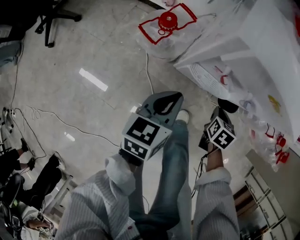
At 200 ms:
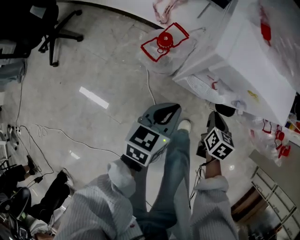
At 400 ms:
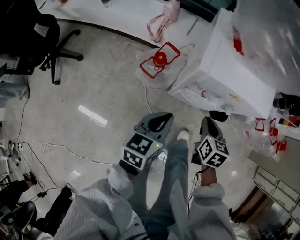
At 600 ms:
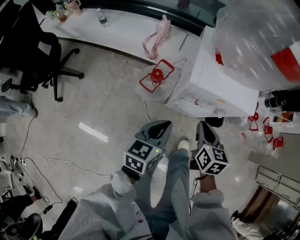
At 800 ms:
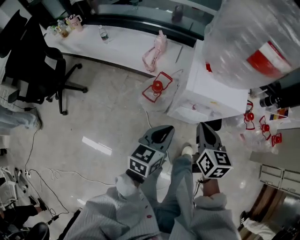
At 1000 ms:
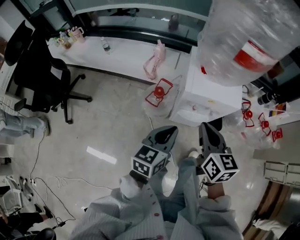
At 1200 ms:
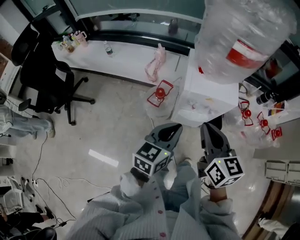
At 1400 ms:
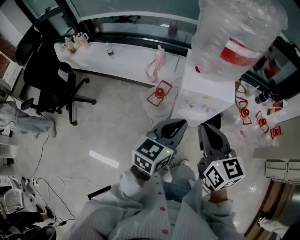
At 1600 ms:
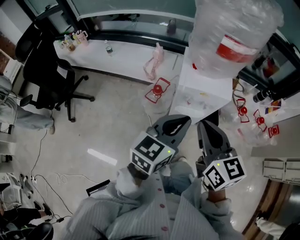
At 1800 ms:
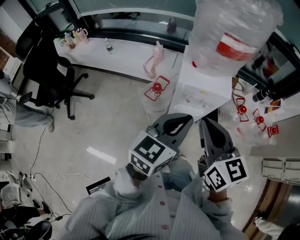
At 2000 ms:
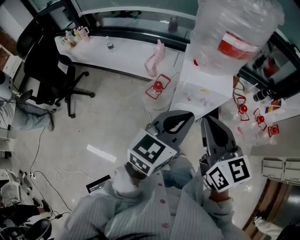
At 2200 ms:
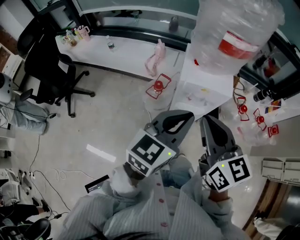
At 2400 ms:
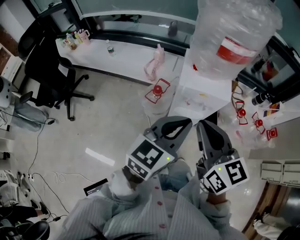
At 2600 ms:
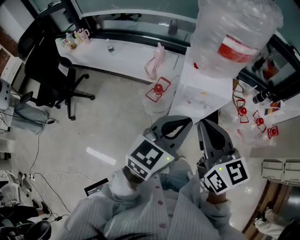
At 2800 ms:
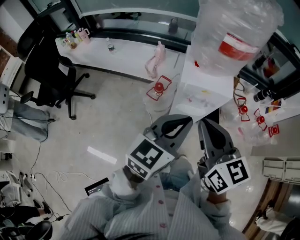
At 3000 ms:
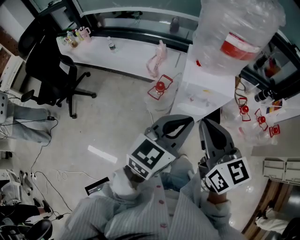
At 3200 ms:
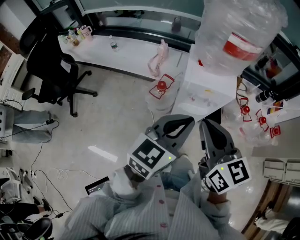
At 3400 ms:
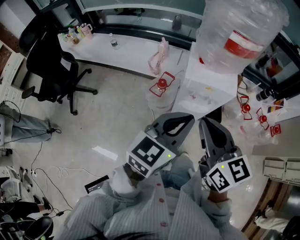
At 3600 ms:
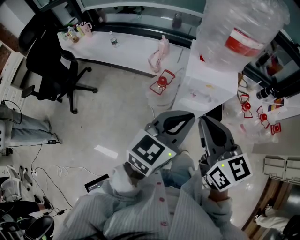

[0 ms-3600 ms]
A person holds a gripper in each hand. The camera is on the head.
0 ms to 1800 ms: The grippers both shift upward by some 50 cm. The right gripper angles its fingers upward, by some 50 degrees. Meanwhile the left gripper turns by about 40 degrees.
1800 ms to 3600 ms: The grippers stay close to where they were, moving slightly.

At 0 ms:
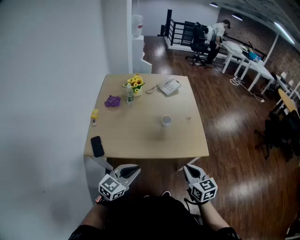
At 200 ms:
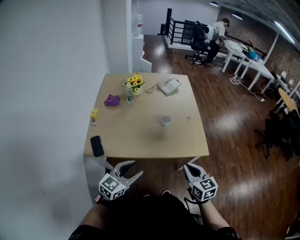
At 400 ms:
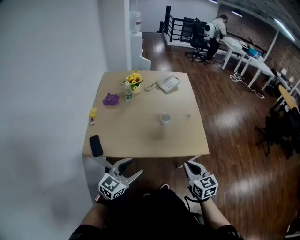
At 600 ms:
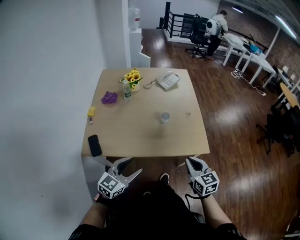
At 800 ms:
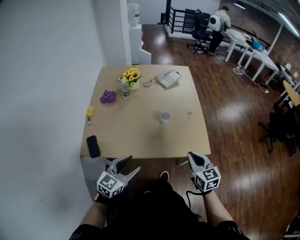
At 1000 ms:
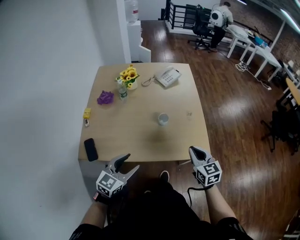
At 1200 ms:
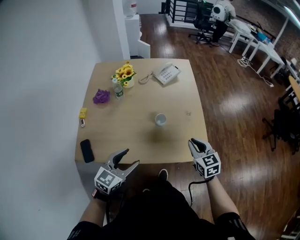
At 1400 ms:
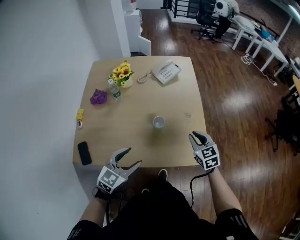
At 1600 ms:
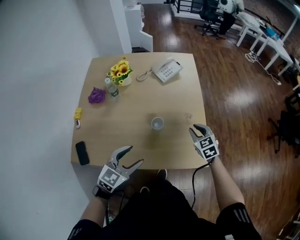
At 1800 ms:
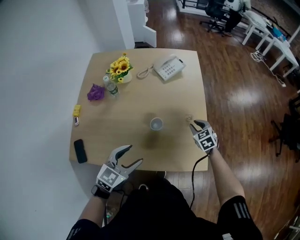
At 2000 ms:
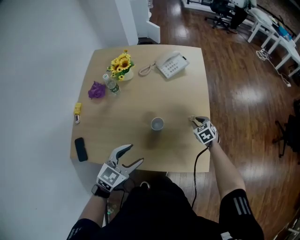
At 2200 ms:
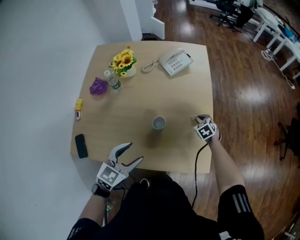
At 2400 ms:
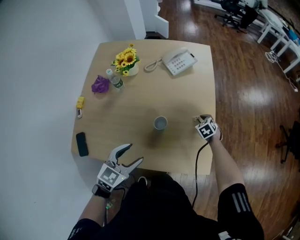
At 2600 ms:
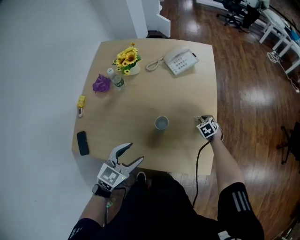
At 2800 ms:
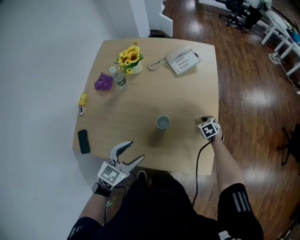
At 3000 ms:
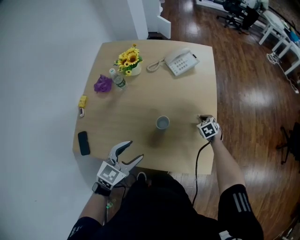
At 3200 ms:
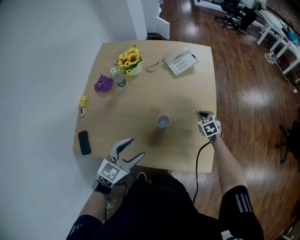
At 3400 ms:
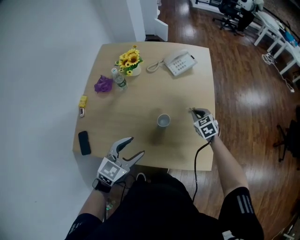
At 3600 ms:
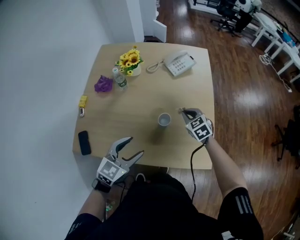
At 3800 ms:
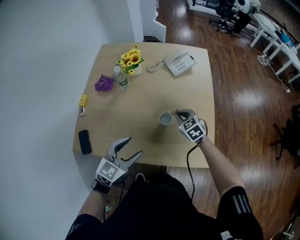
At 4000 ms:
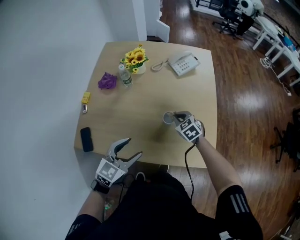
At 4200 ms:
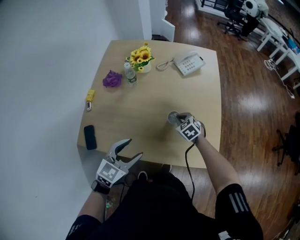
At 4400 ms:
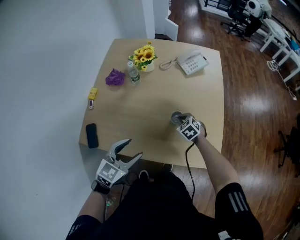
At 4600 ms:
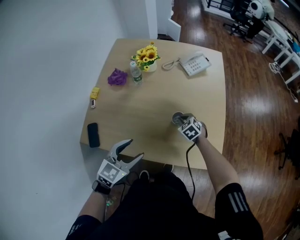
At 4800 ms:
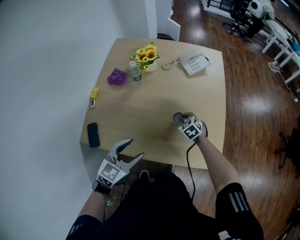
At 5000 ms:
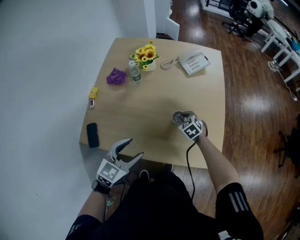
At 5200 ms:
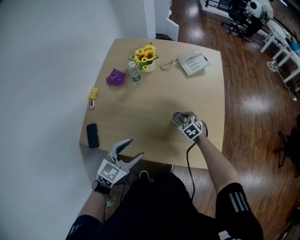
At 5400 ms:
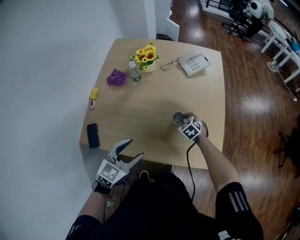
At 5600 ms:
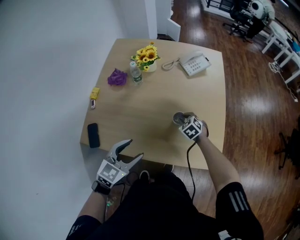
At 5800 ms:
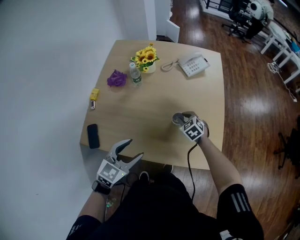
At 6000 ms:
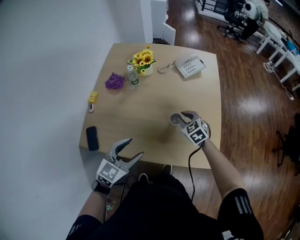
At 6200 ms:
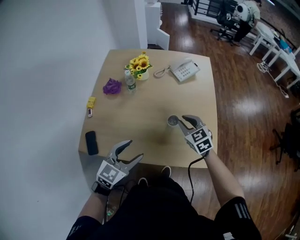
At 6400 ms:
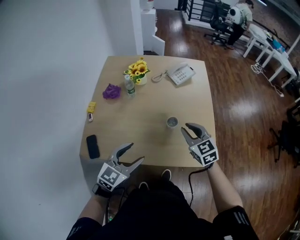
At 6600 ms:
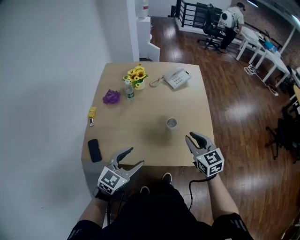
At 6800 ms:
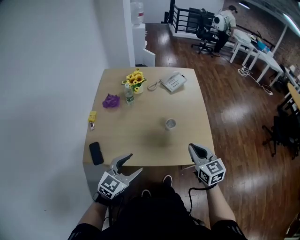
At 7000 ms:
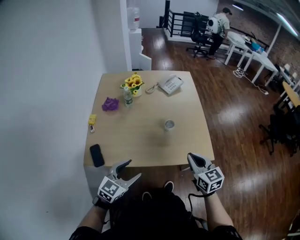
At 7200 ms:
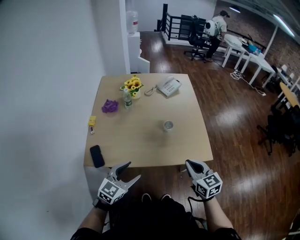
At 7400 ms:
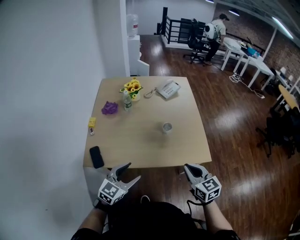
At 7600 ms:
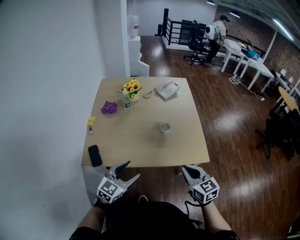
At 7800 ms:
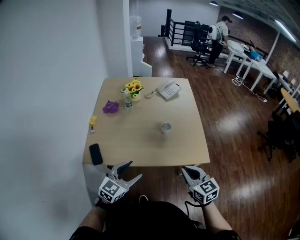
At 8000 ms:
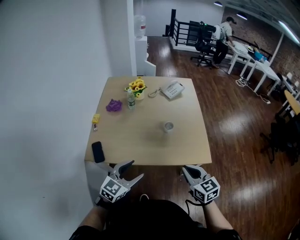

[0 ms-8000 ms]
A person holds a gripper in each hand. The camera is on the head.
0 ms to 1600 ms: The right gripper moves forward, about 40 cm, rotates some 30 degrees, and opens up, while the left gripper goes some 25 cm forward, and opens.
1600 ms to 3200 ms: The right gripper shifts roughly 15 cm forward and downward, and closes its fingers.
3200 ms to 4800 ms: The left gripper heads to the left, covering about 10 cm. The right gripper heads to the left, covering about 20 cm.
4800 ms to 6400 ms: The right gripper moves upward and backward, approximately 25 cm, and rotates some 30 degrees. The left gripper changes place by some 5 cm.
6400 ms to 8000 ms: The right gripper is displaced backward by about 25 cm, and closes its fingers. The left gripper shifts approximately 15 cm backward.

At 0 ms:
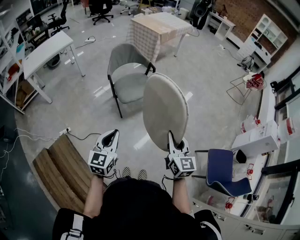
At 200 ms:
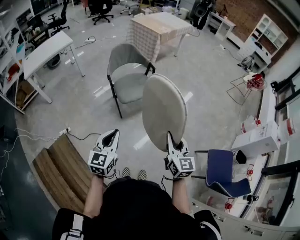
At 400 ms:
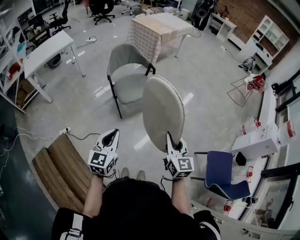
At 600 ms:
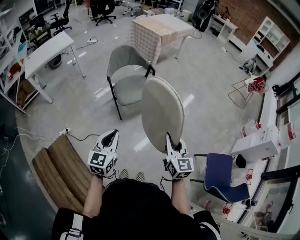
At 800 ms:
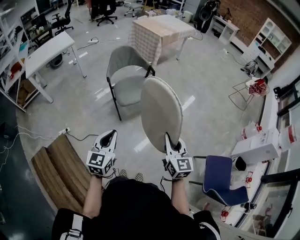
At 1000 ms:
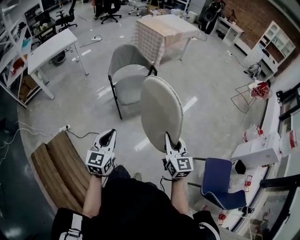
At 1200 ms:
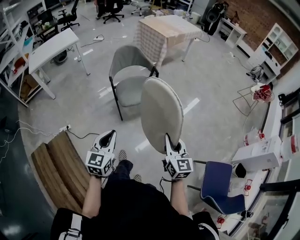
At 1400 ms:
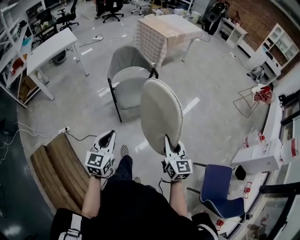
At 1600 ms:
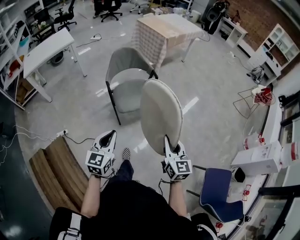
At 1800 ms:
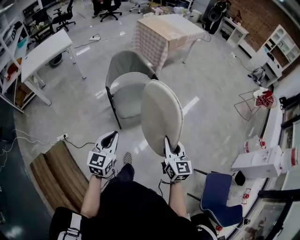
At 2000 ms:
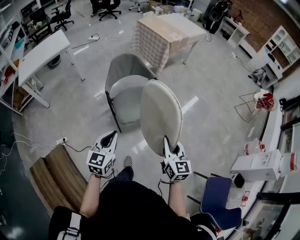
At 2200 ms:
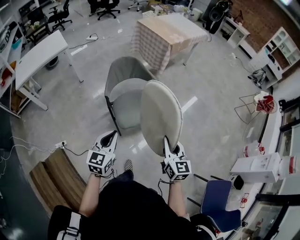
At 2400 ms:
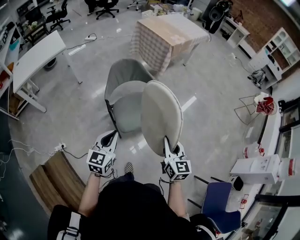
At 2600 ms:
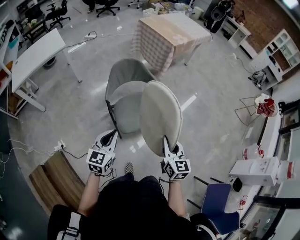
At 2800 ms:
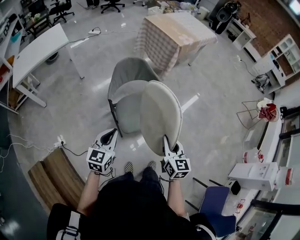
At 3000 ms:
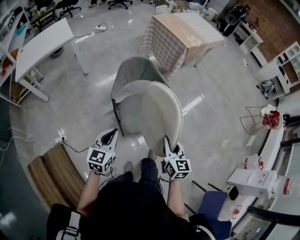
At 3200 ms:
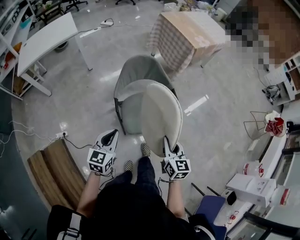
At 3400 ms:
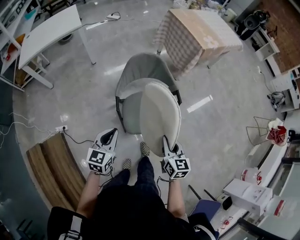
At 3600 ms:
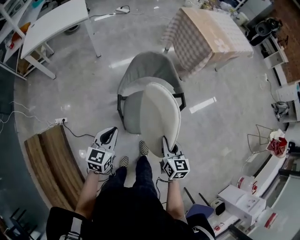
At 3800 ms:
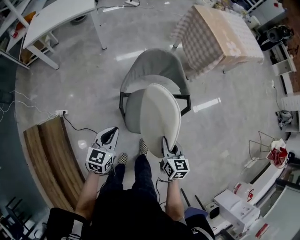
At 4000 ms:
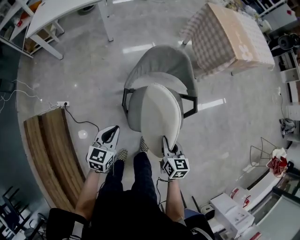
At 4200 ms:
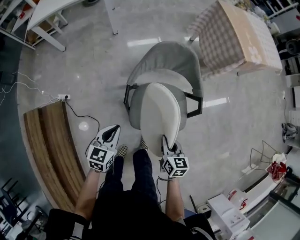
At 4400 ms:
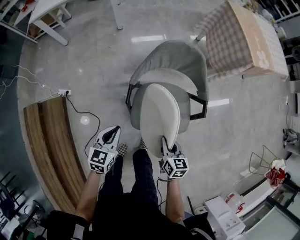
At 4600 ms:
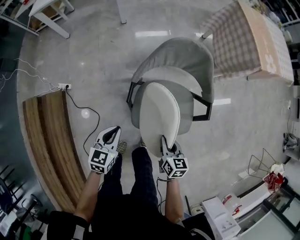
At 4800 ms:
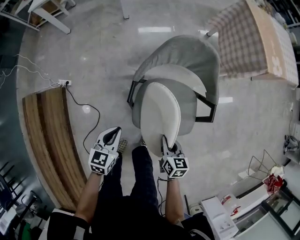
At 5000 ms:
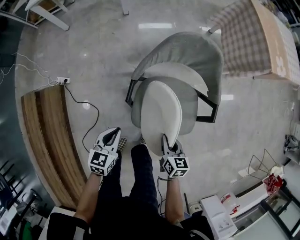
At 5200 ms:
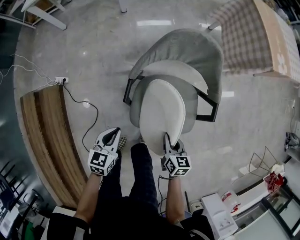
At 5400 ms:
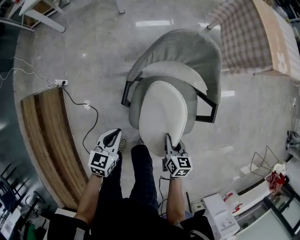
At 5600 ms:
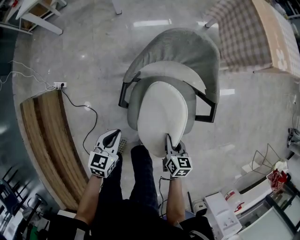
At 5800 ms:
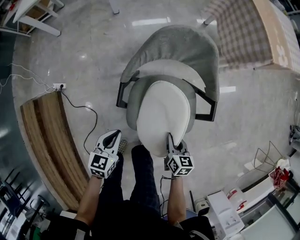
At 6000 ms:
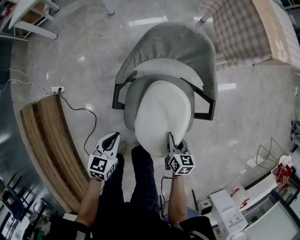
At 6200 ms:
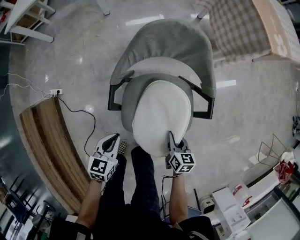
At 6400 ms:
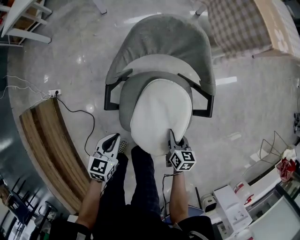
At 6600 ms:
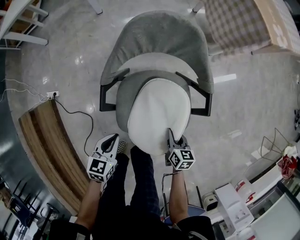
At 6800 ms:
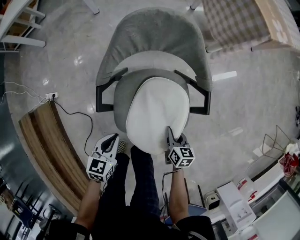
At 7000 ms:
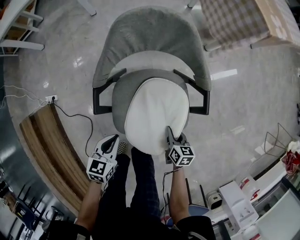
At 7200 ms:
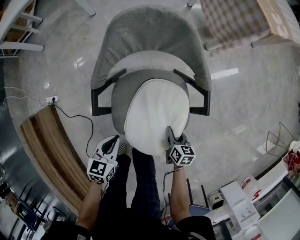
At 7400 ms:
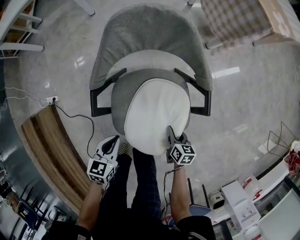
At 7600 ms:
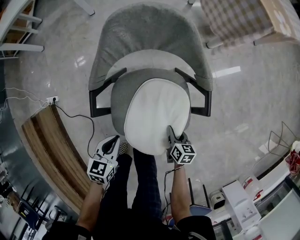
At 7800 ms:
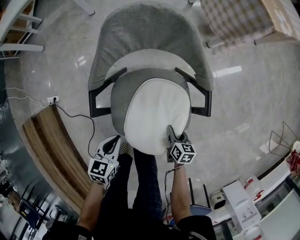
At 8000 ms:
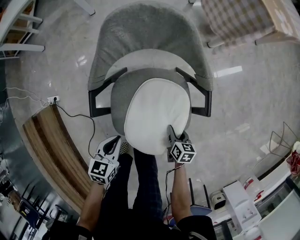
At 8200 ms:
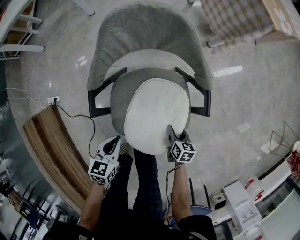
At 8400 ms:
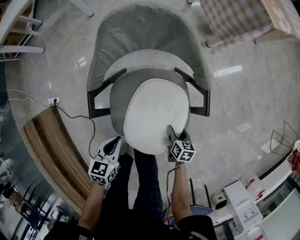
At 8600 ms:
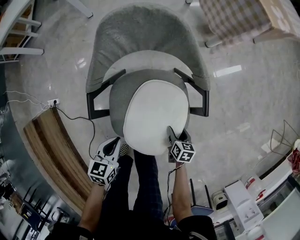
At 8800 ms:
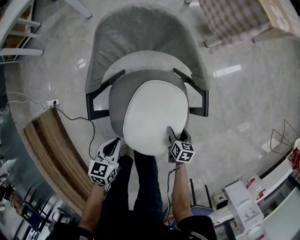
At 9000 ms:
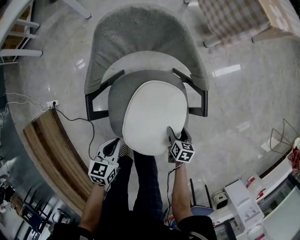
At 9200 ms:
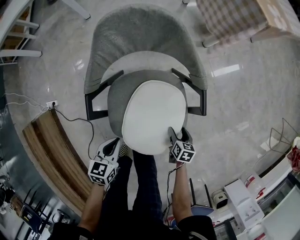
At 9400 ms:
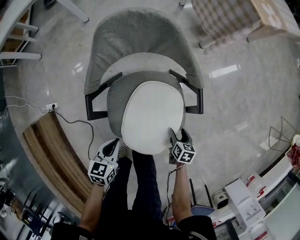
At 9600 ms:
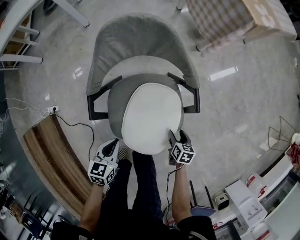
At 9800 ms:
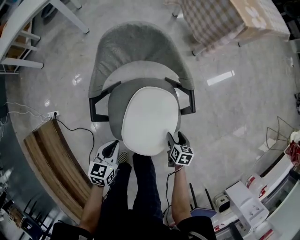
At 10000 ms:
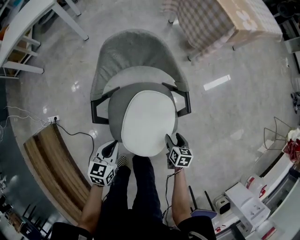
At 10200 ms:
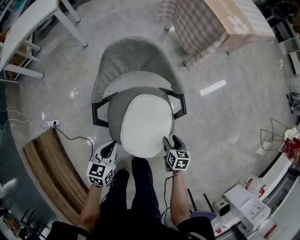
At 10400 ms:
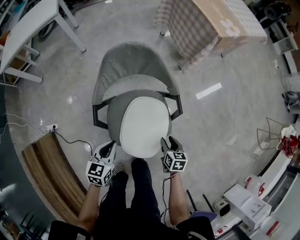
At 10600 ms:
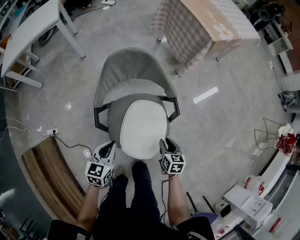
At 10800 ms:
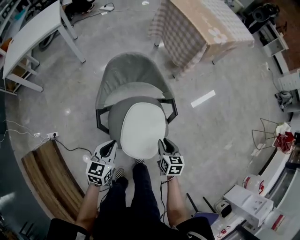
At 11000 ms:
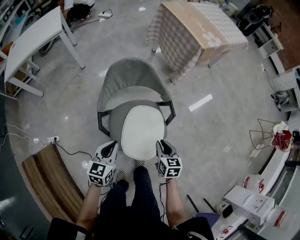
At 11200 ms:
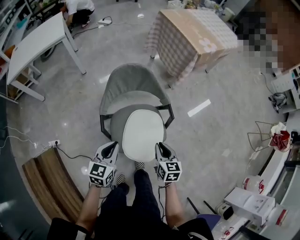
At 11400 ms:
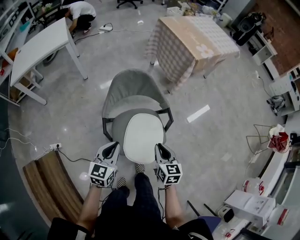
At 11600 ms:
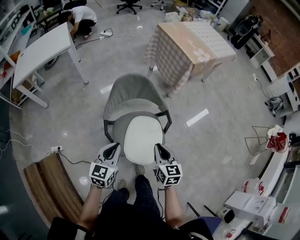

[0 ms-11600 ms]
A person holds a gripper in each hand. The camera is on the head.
0 ms to 1400 ms: The two grippers go some 10 cm forward.
1400 ms to 2800 ms: The grippers both shift forward by approximately 35 cm.
2800 ms to 4400 ms: Both grippers travel together downward, approximately 25 cm. The right gripper turns by roughly 40 degrees. Meanwhile the left gripper changes its angle by approximately 30 degrees.
4400 ms to 5800 ms: The grippers both shift downward by roughly 10 cm.
5800 ms to 7200 ms: The right gripper moves downward and to the right, about 15 cm. The left gripper moves to the right and downward, approximately 10 cm.
7200 ms to 8800 ms: The right gripper travels downward by approximately 5 cm, and opens.
8800 ms to 10200 ms: Both grippers move upward, about 15 cm.
10200 ms to 11600 ms: The two grippers go about 25 cm upward. The right gripper changes its angle by roughly 30 degrees, and closes its fingers, while the left gripper rotates roughly 20 degrees.
